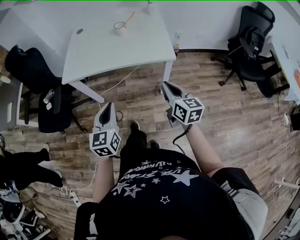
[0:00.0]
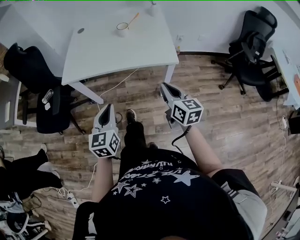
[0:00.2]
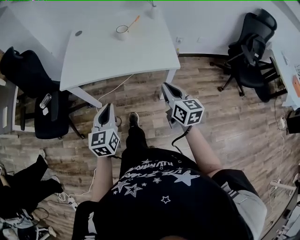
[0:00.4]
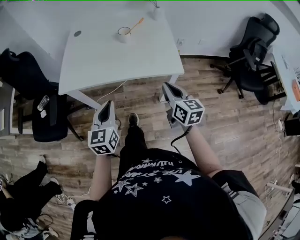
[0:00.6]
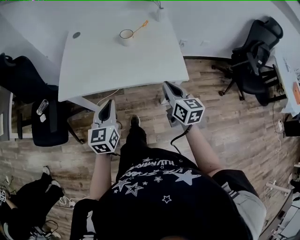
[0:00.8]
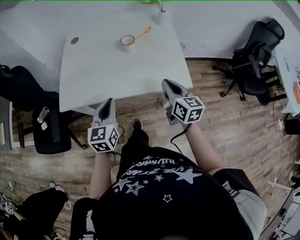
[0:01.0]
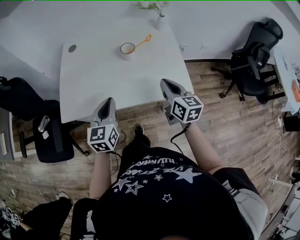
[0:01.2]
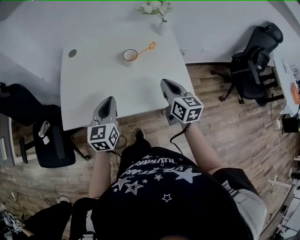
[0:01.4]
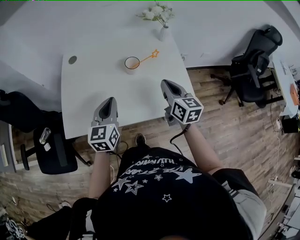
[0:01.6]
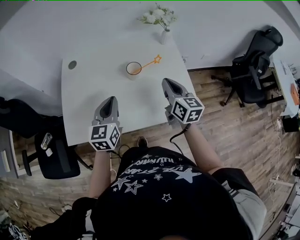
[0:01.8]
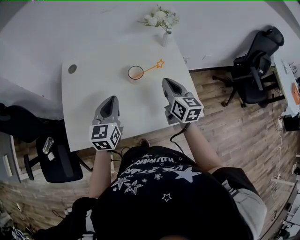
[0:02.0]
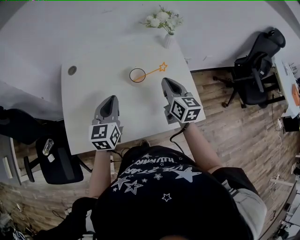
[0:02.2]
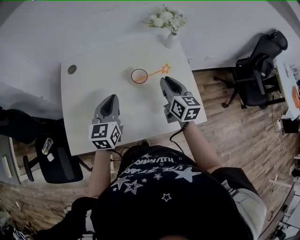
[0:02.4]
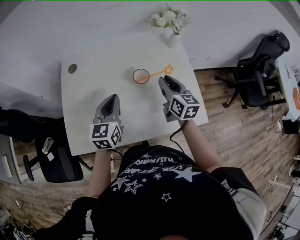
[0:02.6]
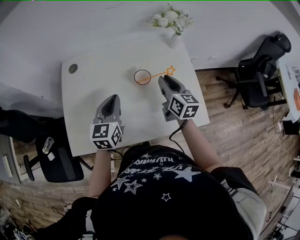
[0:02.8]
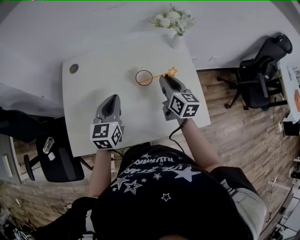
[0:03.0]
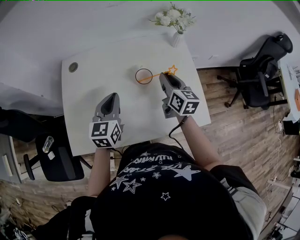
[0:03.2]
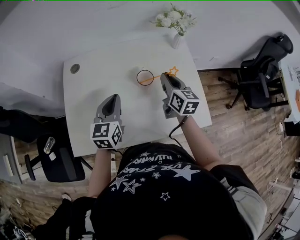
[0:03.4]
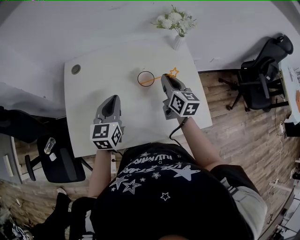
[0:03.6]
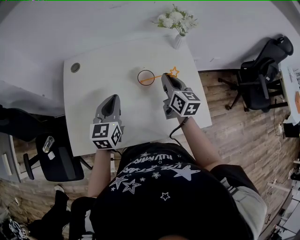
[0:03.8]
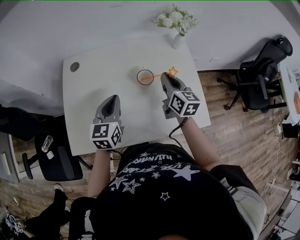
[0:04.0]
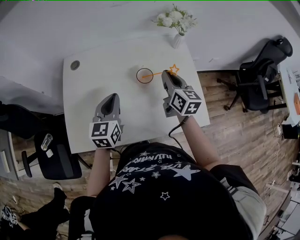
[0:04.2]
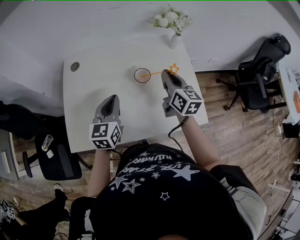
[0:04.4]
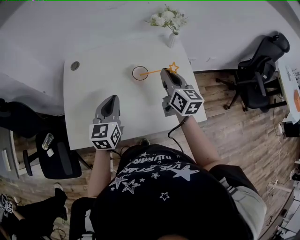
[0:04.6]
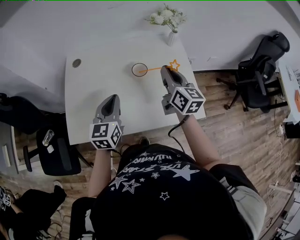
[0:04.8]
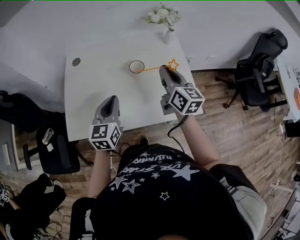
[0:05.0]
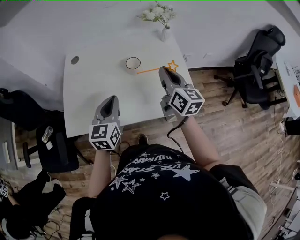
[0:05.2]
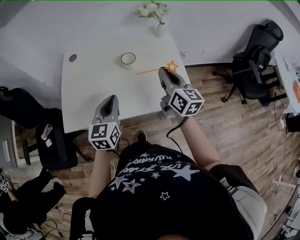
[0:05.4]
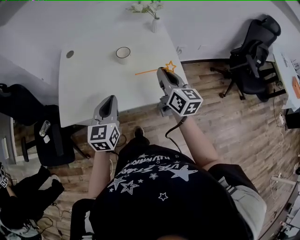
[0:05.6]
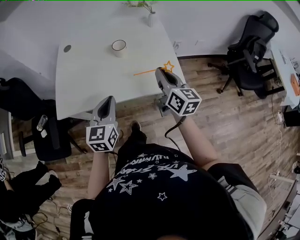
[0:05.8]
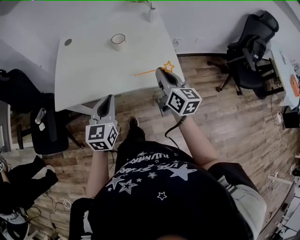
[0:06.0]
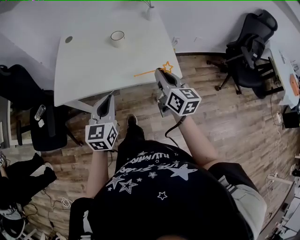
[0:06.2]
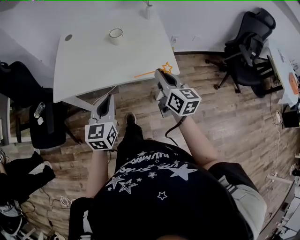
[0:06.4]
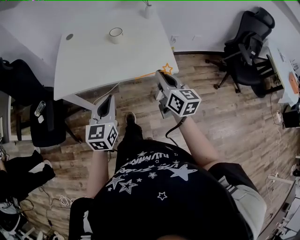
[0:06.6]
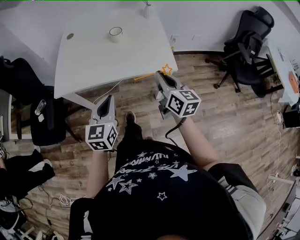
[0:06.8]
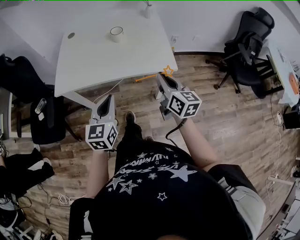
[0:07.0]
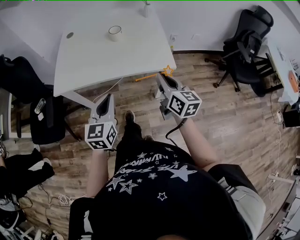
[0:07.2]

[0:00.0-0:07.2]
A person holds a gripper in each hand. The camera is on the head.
0:00.0 to 0:01.4: Both grippers move forward, some 35 cm.
0:01.4 to 0:02.8: Both grippers travel together forward, some 15 cm. The right gripper opens.
0:02.8 to 0:04.4: The grippers make only small movements.
0:04.4 to 0:05.8: The grippers both shift backward by about 20 cm.
0:05.8 to 0:07.2: Both grippers move backward, some 15 cm.

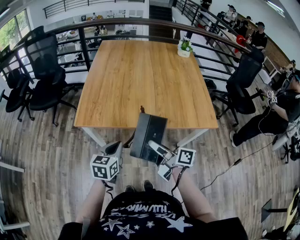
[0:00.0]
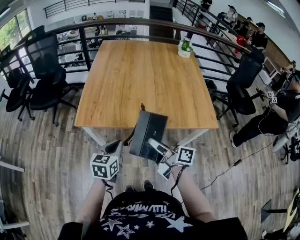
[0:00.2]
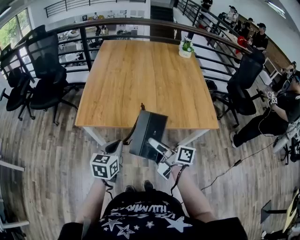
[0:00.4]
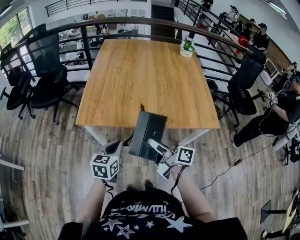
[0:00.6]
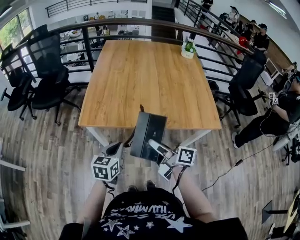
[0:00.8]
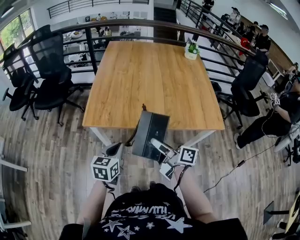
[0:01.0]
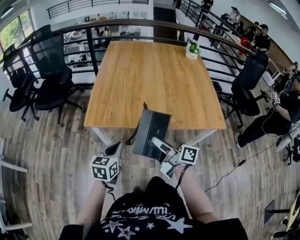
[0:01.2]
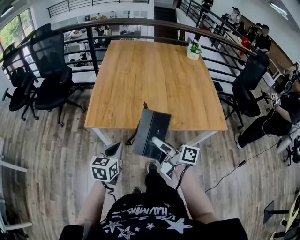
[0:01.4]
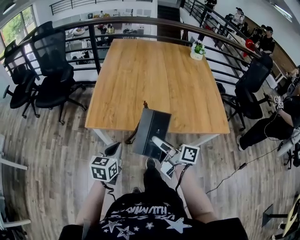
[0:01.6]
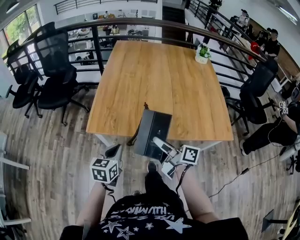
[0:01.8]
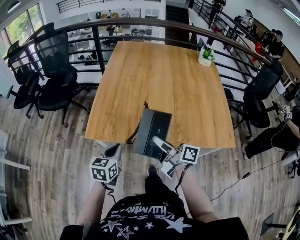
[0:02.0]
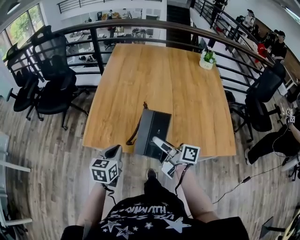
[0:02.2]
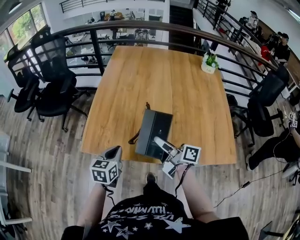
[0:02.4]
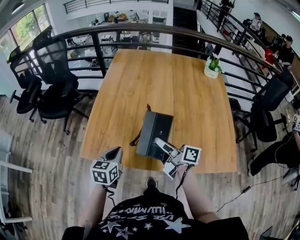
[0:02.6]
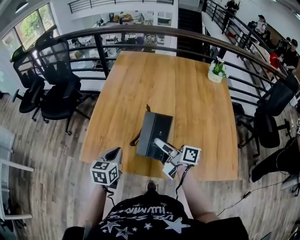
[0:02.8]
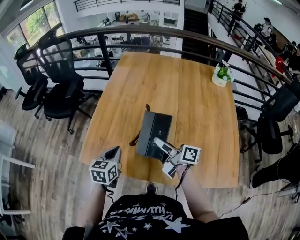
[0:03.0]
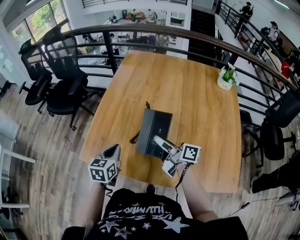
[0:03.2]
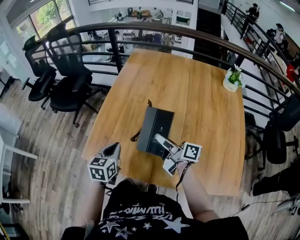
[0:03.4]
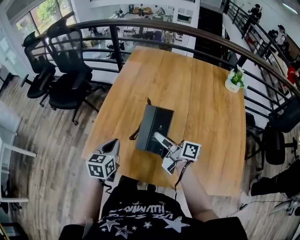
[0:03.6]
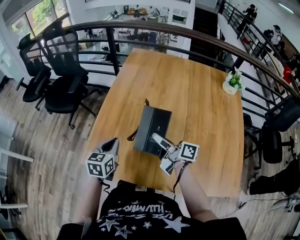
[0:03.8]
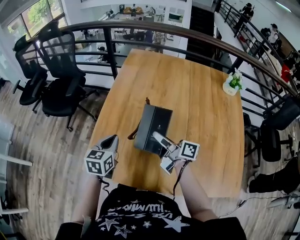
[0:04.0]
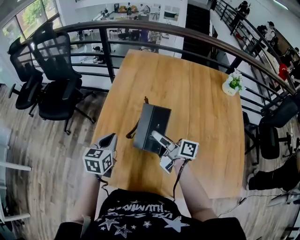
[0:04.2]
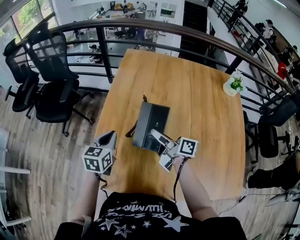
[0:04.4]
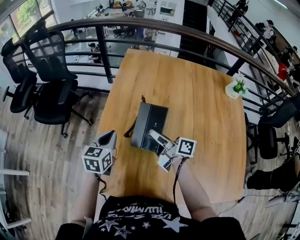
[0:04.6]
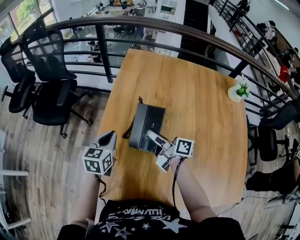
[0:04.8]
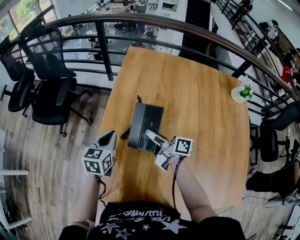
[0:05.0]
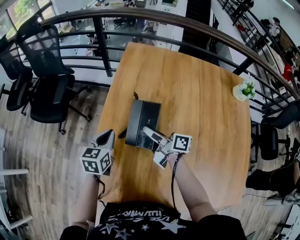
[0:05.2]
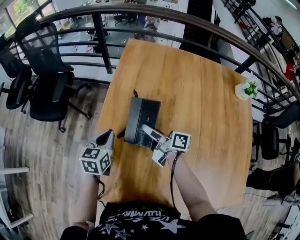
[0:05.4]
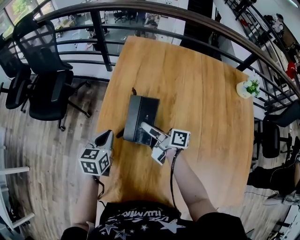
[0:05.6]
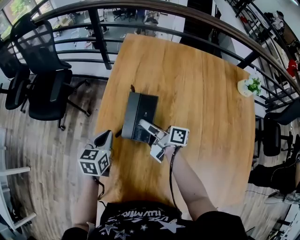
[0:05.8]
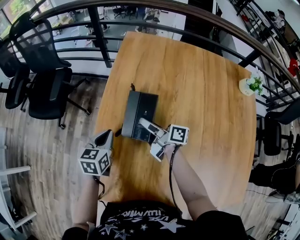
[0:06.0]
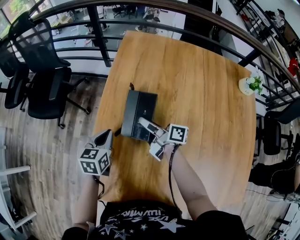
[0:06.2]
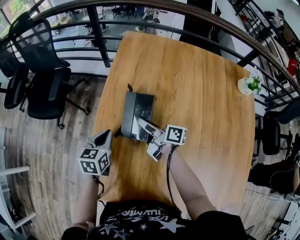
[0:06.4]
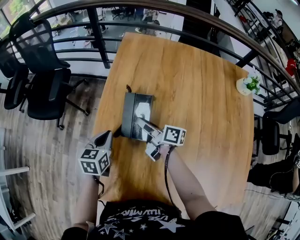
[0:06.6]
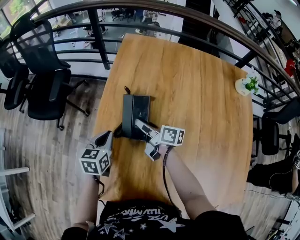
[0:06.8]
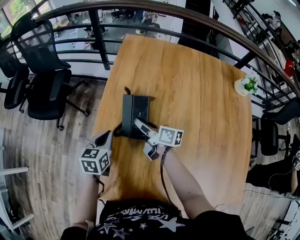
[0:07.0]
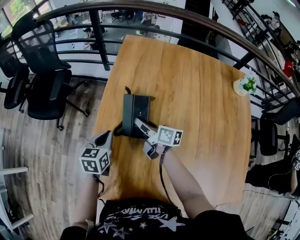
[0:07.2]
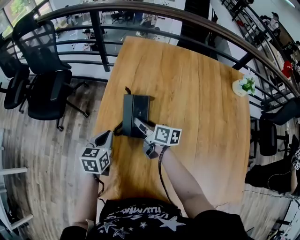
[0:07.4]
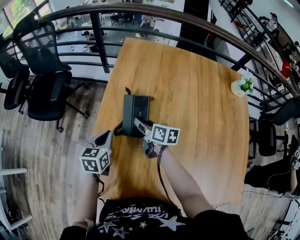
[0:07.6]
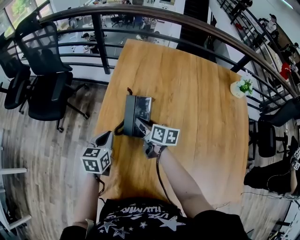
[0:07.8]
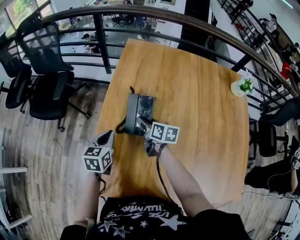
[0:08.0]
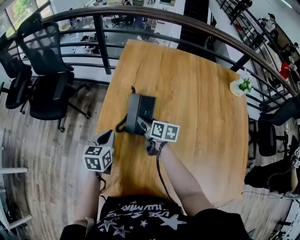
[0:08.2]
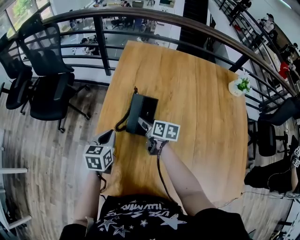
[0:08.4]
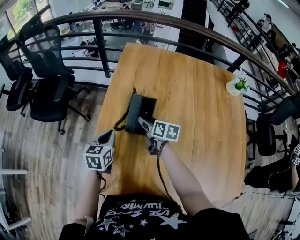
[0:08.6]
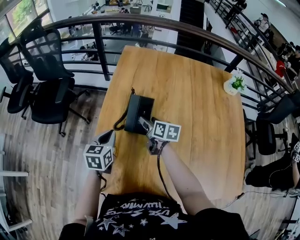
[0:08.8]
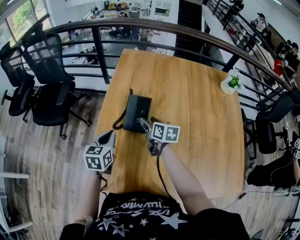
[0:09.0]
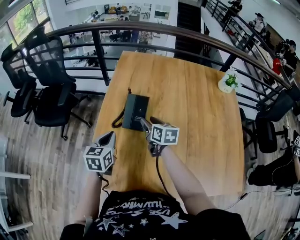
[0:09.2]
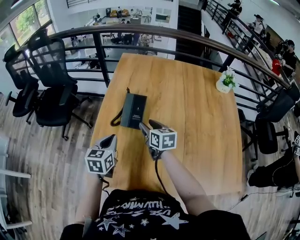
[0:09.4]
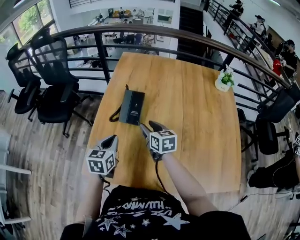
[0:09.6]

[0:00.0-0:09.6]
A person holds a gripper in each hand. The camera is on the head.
0:00.0 to 0:01.6: The right gripper shifts some 10 cm to the left and forward. Meanwhile the left gripper is displaced to the left by about 10 cm.
0:01.6 to 0:03.2: The grippers both shift forward and to the right by approximately 30 cm.
0:03.2 to 0:04.8: Both grippers move forward, approximately 25 cm.
0:04.8 to 0:06.4: The right gripper travels forward and downward by some 10 cm. Meanwhile the left gripper moves downward, some 5 cm.
0:06.4 to 0:08.0: The right gripper swivels approximately 40 degrees.
0:08.0 to 0:09.6: The right gripper moves backward and upward, some 15 cm, and turns by approximately 20 degrees. Meanwhile the left gripper travels backward, upward and to the right by approximately 15 cm.

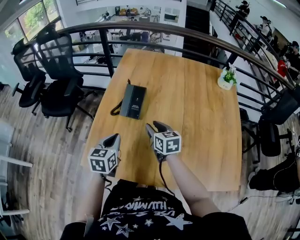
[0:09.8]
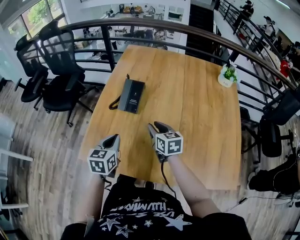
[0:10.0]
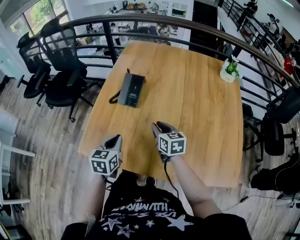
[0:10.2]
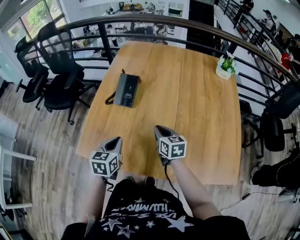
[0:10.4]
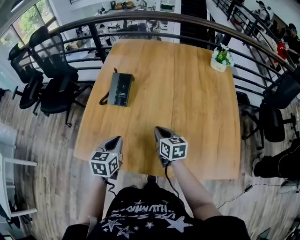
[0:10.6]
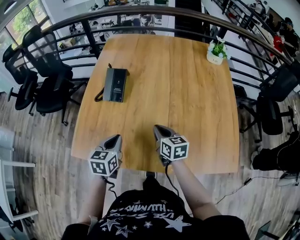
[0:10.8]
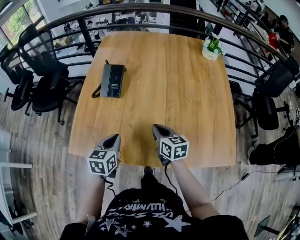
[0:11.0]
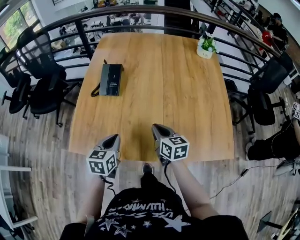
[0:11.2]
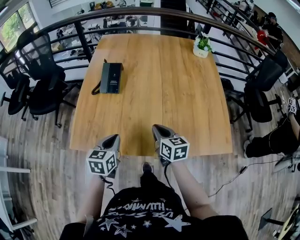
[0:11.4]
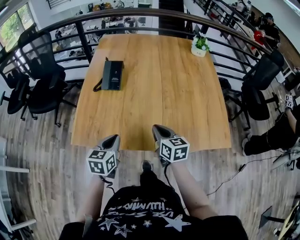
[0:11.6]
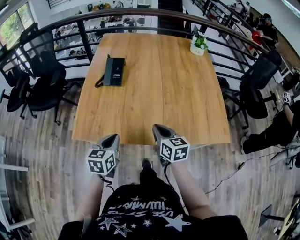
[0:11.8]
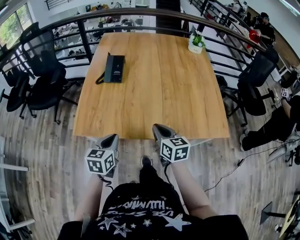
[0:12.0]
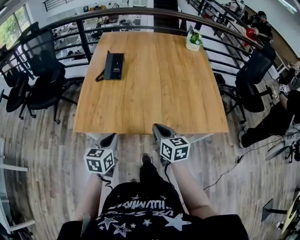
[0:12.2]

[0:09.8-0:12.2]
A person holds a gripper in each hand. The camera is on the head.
0:09.8 to 0:11.0: The grippers both shift backward and to the right by approximately 15 cm. The right gripper closes.
0:11.0 to 0:12.2: Both grippers move backward, about 20 cm.

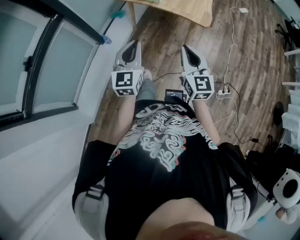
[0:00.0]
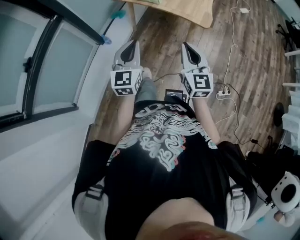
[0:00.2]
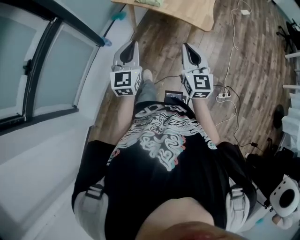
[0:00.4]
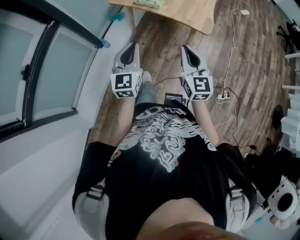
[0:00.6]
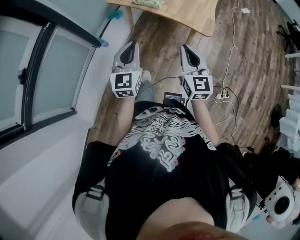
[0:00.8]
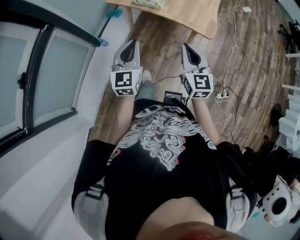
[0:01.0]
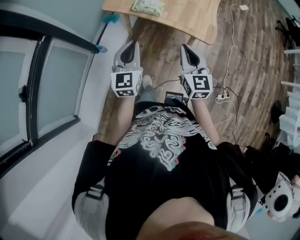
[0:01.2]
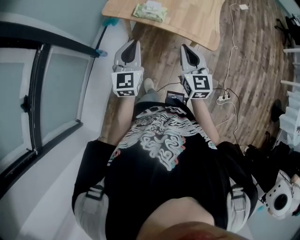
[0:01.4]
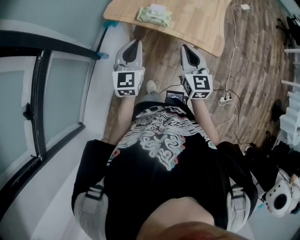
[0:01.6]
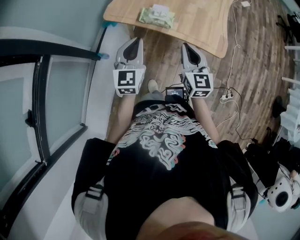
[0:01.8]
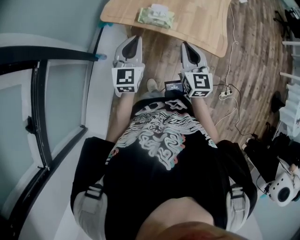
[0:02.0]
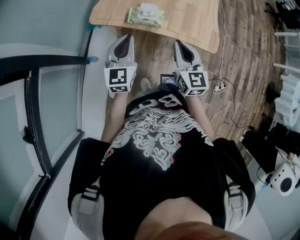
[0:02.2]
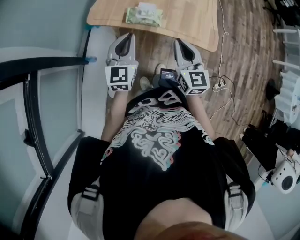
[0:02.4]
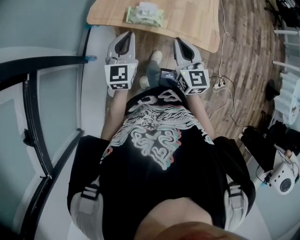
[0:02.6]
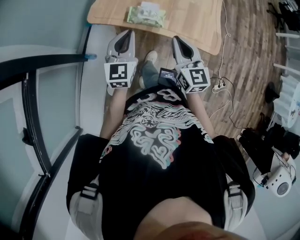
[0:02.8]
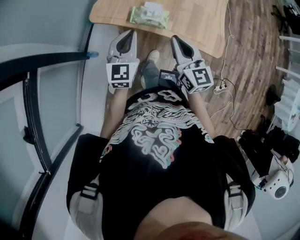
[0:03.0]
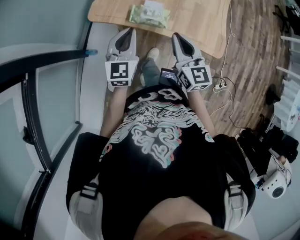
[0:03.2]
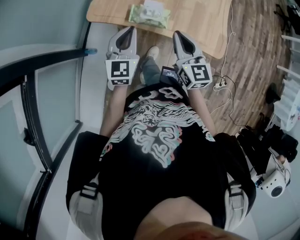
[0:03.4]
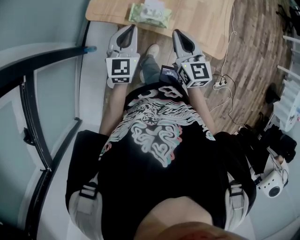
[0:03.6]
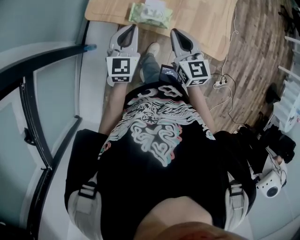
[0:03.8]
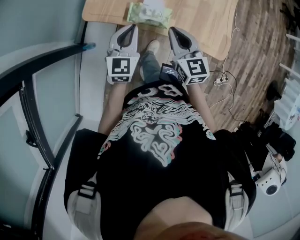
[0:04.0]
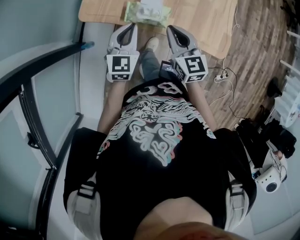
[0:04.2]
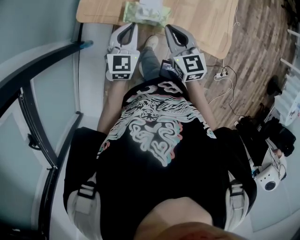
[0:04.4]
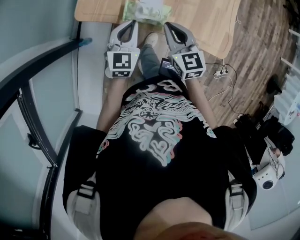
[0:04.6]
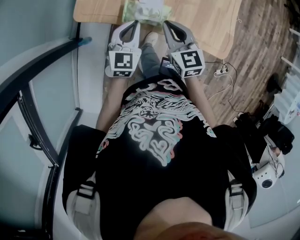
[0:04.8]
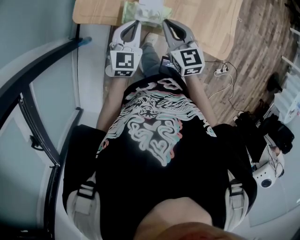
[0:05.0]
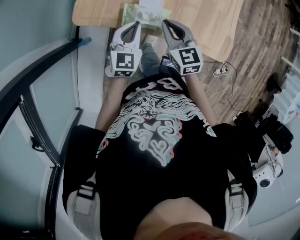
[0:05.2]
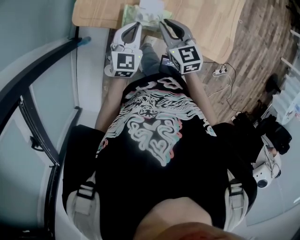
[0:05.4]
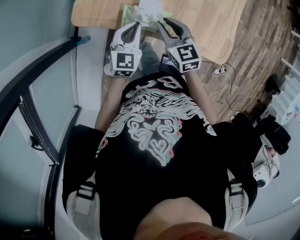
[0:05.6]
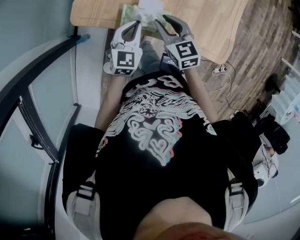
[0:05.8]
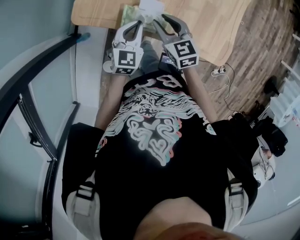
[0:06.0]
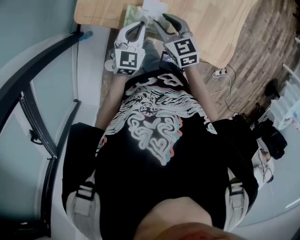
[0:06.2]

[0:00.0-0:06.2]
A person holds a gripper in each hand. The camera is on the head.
0:00.0 to 0:01.6: The two grippers go about 30 cm forward.
0:01.6 to 0:03.2: The left gripper goes some 15 cm forward and downward. Meanwhile the right gripper travels forward by roughly 10 cm.
0:03.2 to 0:04.6: Both grippers move downward and forward, approximately 15 cm.
0:04.6 to 0:06.2: The right gripper moves forward and downward, some 10 cm, and opens; the left gripper shifts by some 5 cm.
